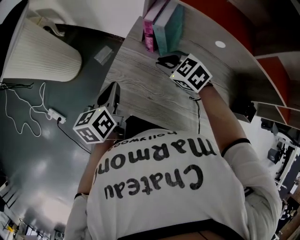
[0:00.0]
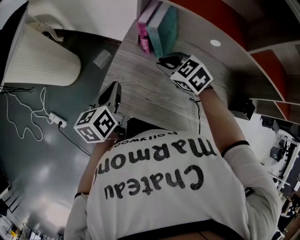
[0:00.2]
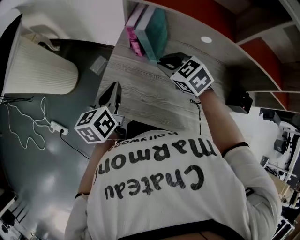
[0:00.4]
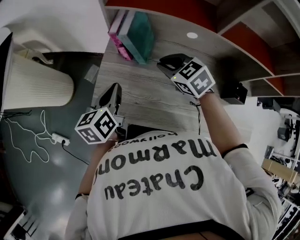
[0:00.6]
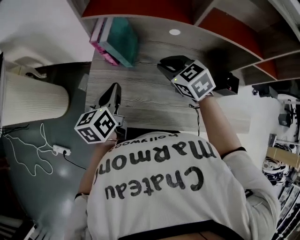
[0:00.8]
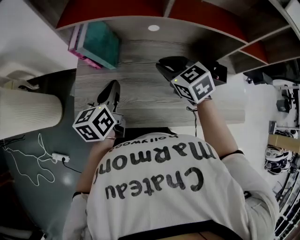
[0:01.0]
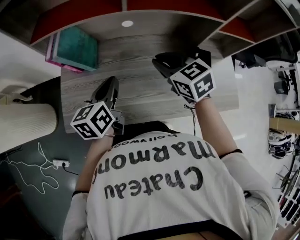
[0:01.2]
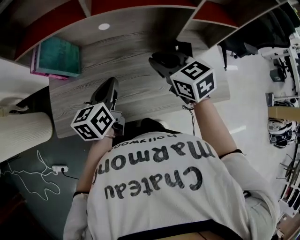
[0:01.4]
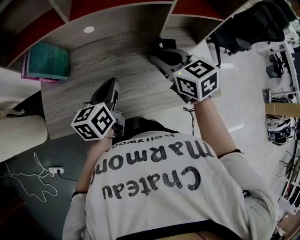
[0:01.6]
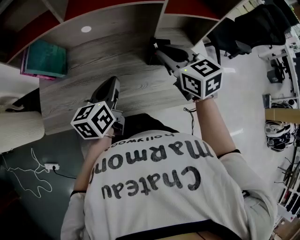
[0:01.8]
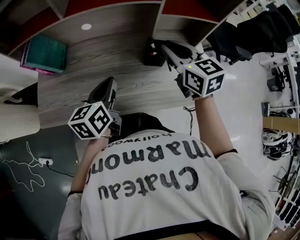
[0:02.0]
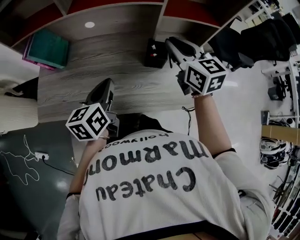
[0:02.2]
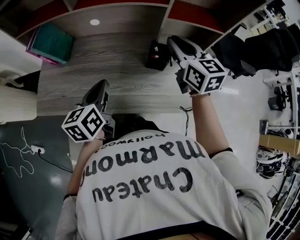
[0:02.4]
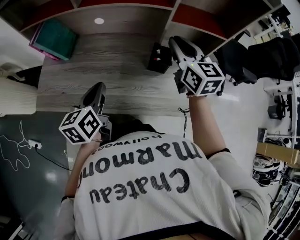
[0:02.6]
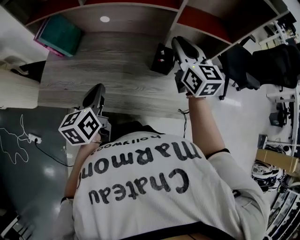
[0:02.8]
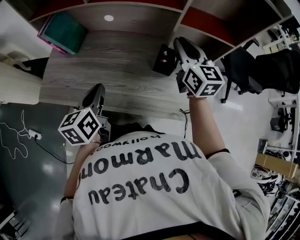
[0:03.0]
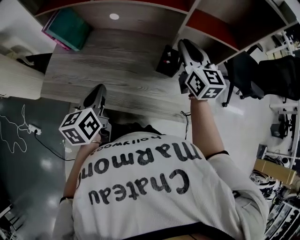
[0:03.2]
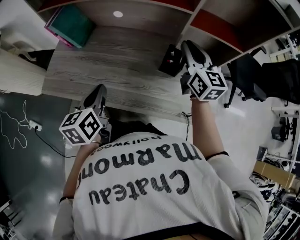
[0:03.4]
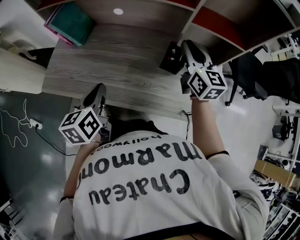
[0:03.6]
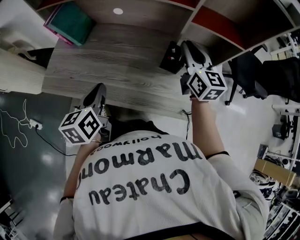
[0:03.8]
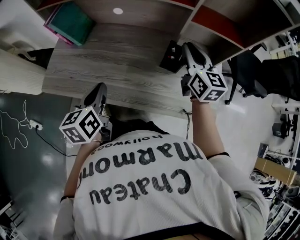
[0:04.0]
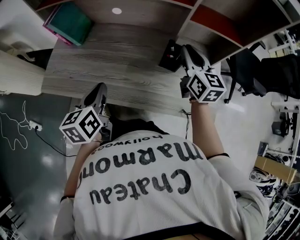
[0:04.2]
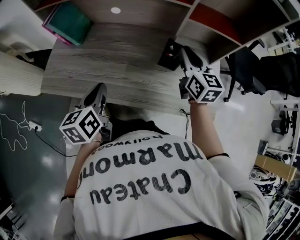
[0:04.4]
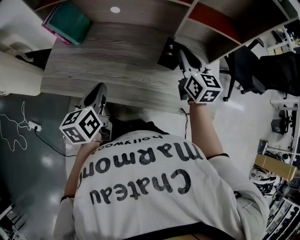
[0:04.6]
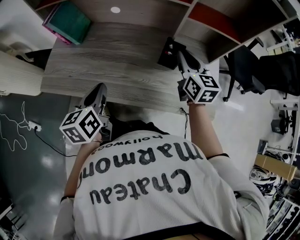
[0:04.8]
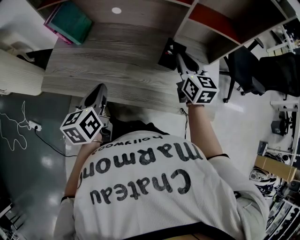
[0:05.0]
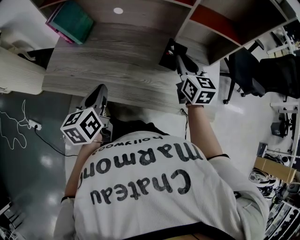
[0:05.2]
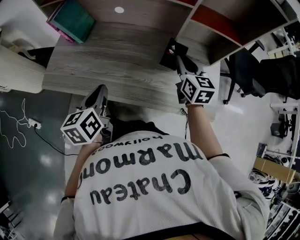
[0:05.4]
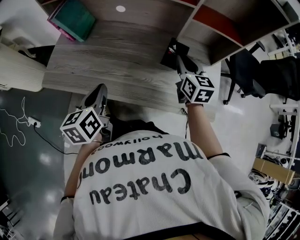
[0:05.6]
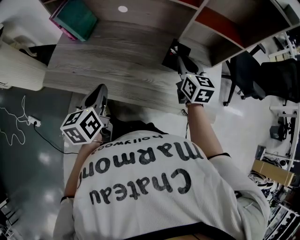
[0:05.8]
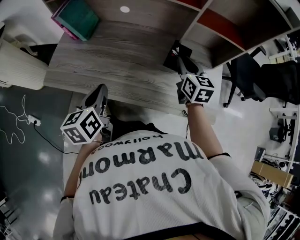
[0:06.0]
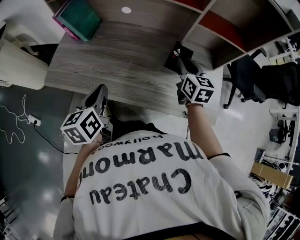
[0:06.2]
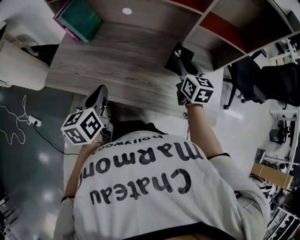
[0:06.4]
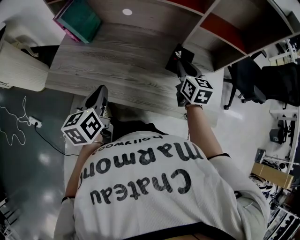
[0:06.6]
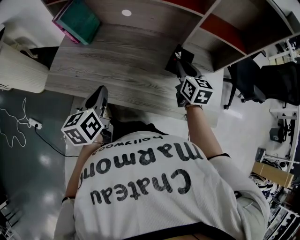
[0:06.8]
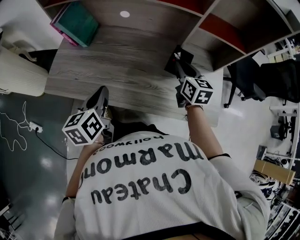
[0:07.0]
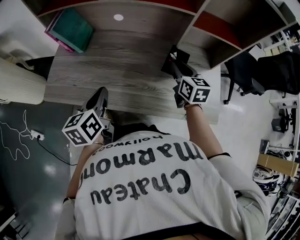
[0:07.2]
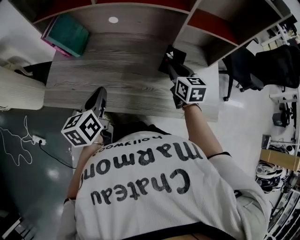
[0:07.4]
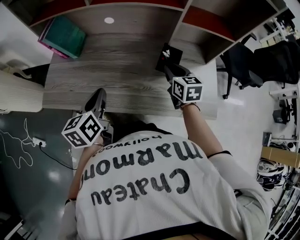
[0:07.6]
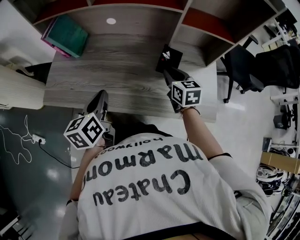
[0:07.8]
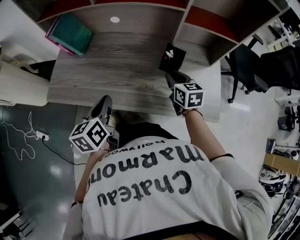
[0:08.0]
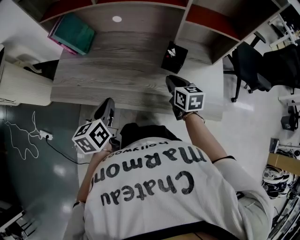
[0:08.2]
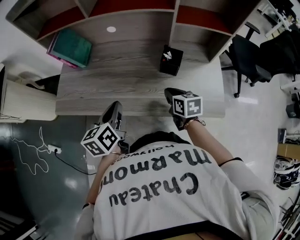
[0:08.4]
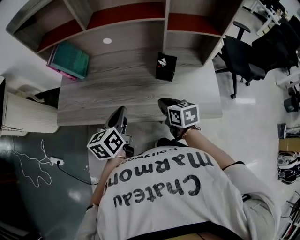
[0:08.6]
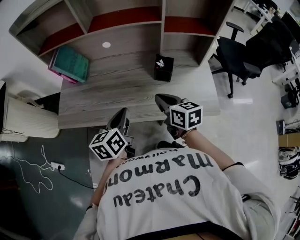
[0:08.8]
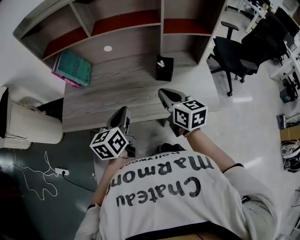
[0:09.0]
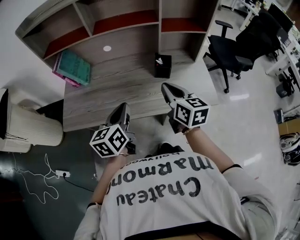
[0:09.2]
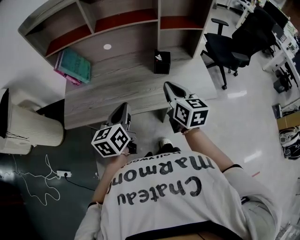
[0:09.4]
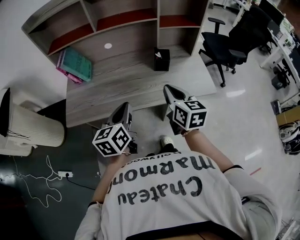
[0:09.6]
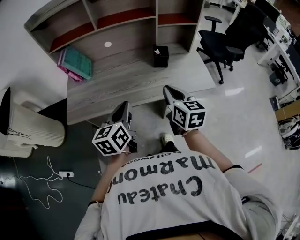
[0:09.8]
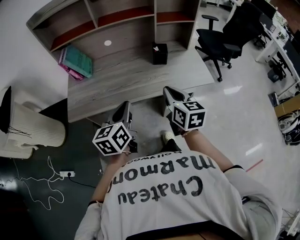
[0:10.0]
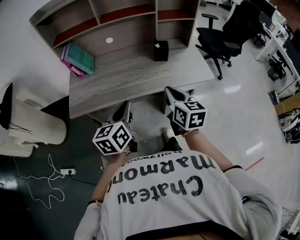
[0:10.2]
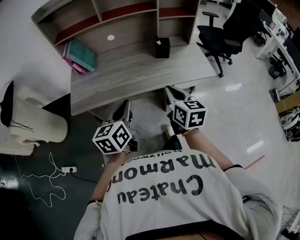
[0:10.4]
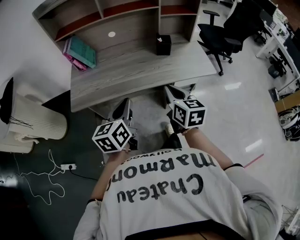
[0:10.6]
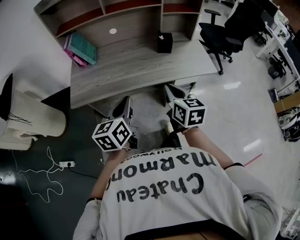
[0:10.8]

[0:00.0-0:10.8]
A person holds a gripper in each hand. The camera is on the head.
0.0 to 1.6 s: The pair of grippers is taken roughly 40 cm. The left gripper turns by about 40 degrees, while the right gripper changes its angle by about 60 degrees.
1.6 to 3.0 s: The left gripper moves backward, about 5 cm, and changes its angle by about 20 degrees. Meanwhile the right gripper heads to the right and forward, covering roughly 10 cm, and turns by approximately 20 degrees.
3.0 to 4.6 s: The right gripper travels downward by about 5 cm.
4.6 to 6.2 s: The right gripper changes place by some 5 cm.
6.2 to 7.8 s: The right gripper shifts by roughly 5 cm.
7.8 to 9.2 s: The right gripper goes some 20 cm backward, upward and to the left, and rotates approximately 20 degrees; the left gripper is displaced backward by some 5 cm.
9.2 to 10.8 s: The left gripper shifts roughly 15 cm backward and to the left; the right gripper moves backward, about 20 cm.

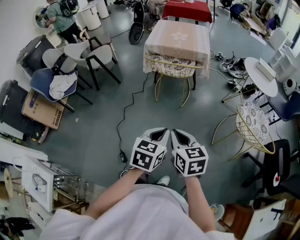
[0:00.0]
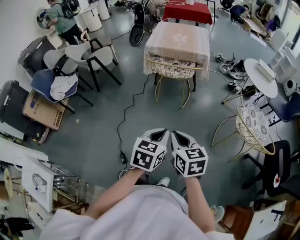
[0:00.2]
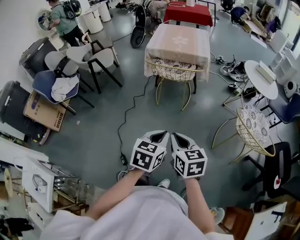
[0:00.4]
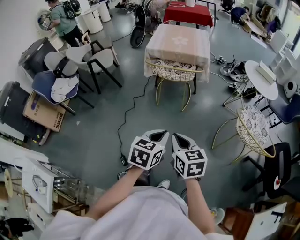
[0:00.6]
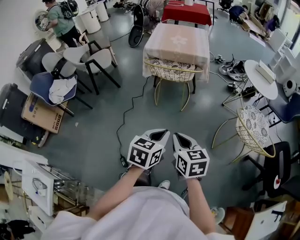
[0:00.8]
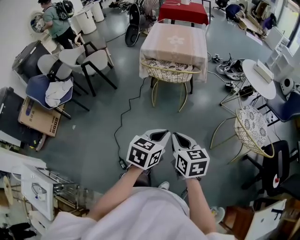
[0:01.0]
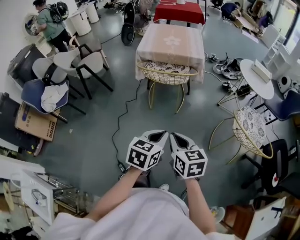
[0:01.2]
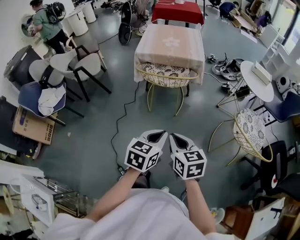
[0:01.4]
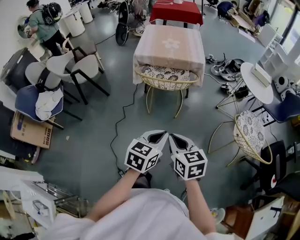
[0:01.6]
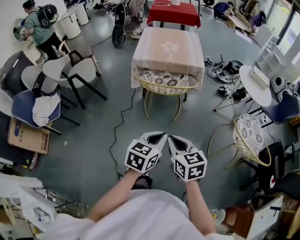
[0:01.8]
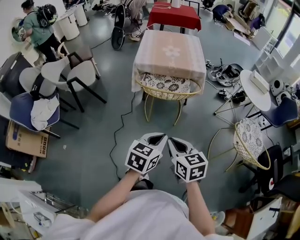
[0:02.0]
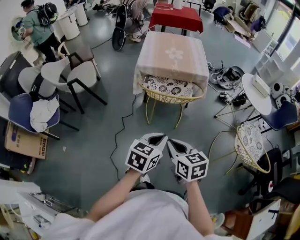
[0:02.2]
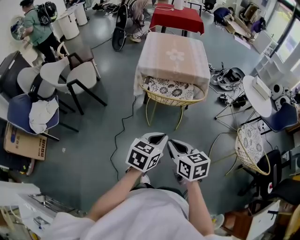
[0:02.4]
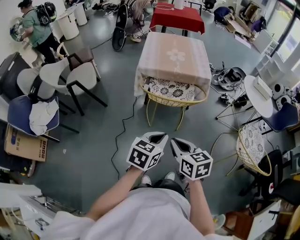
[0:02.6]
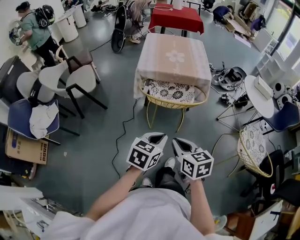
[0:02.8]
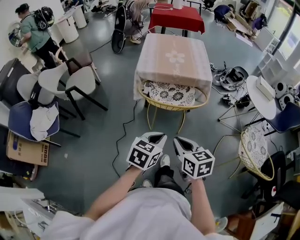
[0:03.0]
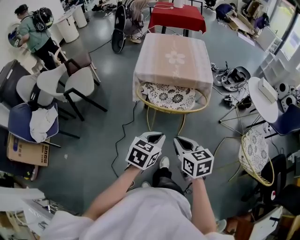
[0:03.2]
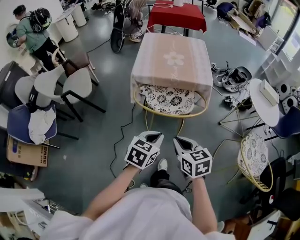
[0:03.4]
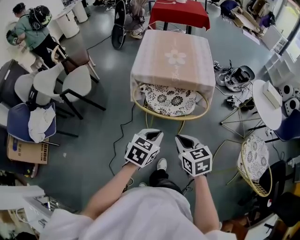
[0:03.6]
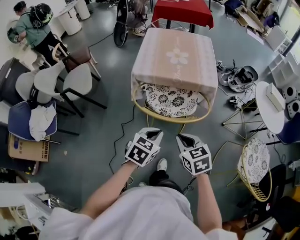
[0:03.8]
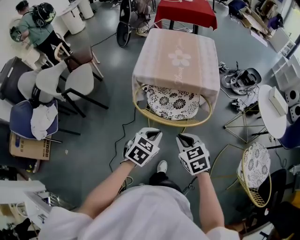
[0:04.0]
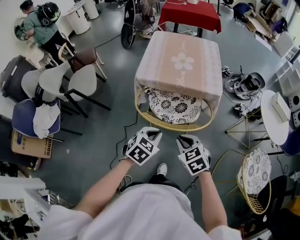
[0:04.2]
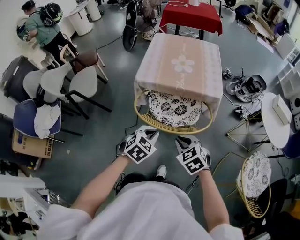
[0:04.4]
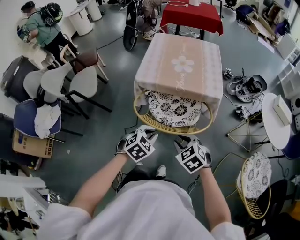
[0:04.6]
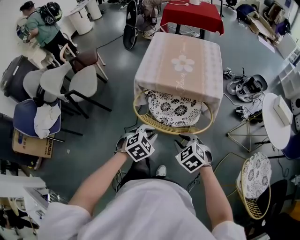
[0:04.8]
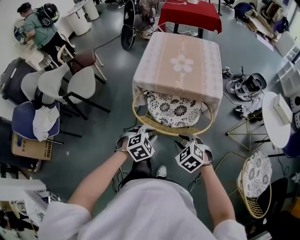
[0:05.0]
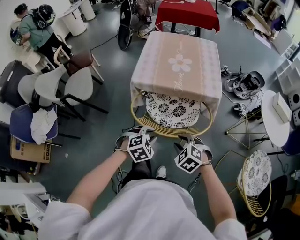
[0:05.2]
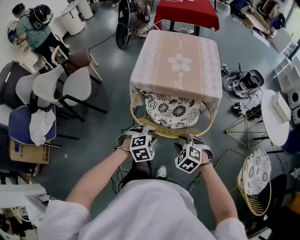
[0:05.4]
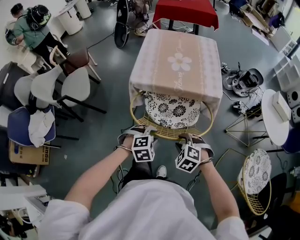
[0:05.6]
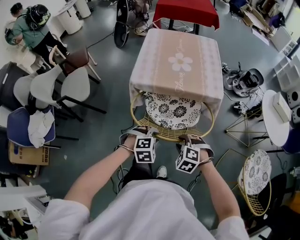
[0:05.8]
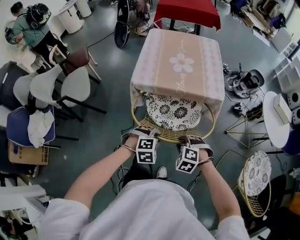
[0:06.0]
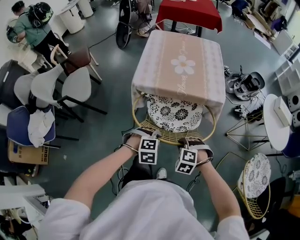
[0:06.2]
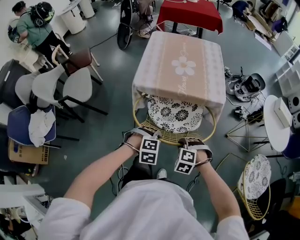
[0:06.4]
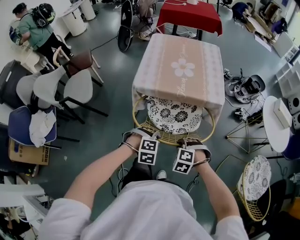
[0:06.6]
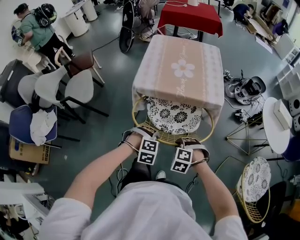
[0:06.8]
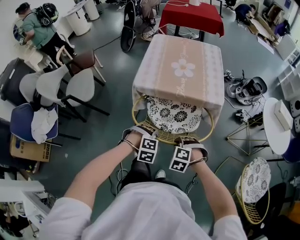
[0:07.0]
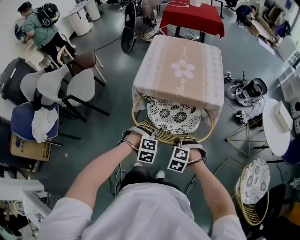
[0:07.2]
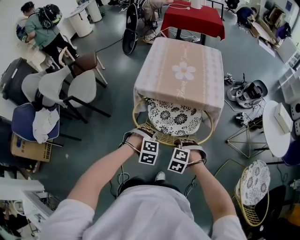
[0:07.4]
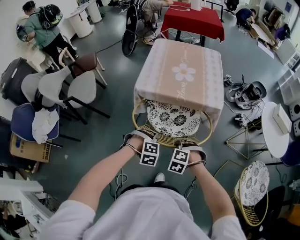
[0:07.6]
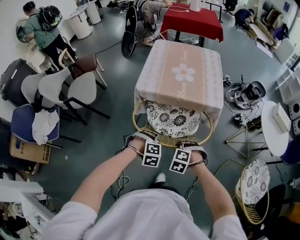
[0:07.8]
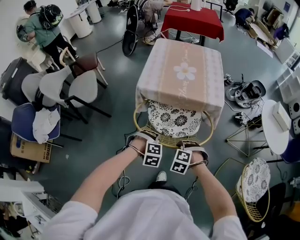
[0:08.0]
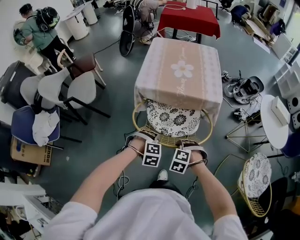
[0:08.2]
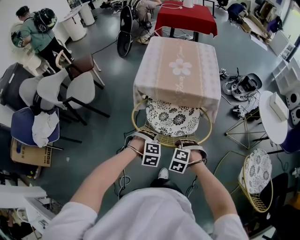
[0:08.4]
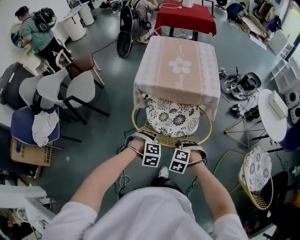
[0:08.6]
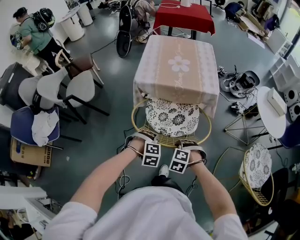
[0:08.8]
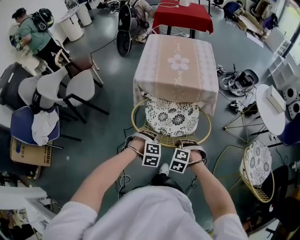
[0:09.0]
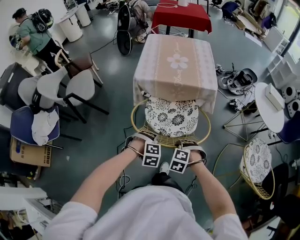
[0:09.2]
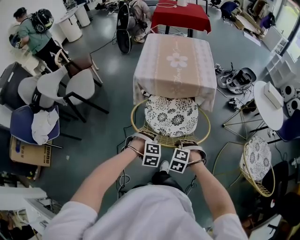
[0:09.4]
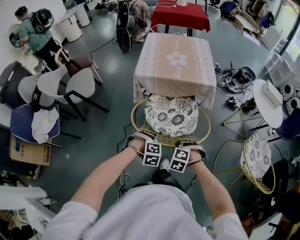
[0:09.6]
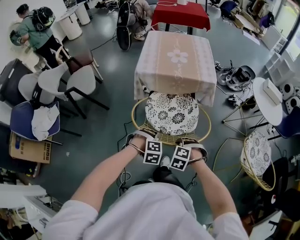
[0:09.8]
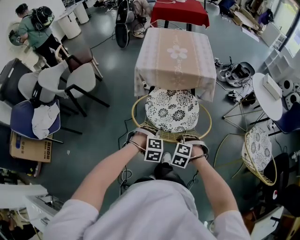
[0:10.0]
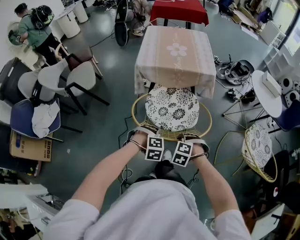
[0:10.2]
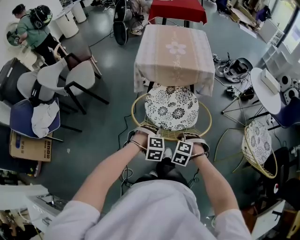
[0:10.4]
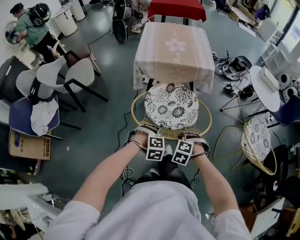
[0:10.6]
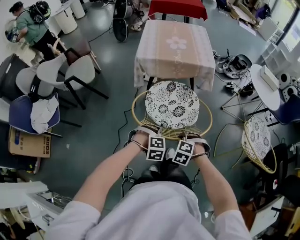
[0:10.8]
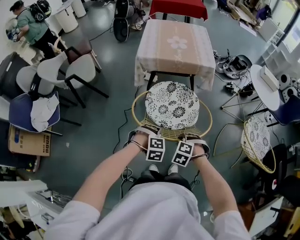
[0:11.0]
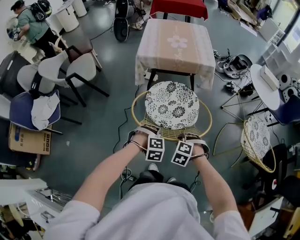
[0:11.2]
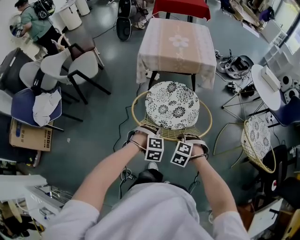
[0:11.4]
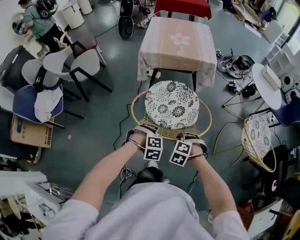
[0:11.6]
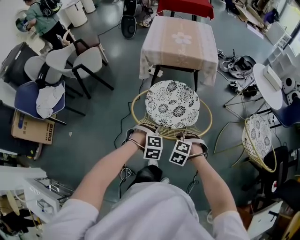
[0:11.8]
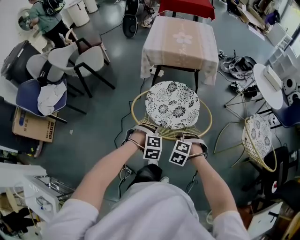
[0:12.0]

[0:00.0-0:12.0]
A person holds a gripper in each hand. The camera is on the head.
0.0 to 1.6 s: Both grippers travel together forward, about 15 cm.
1.6 to 3.0 s: The two grippers go some 20 cm forward and to the left.
3.0 to 4.4 s: The grippers both shift forward and downward by some 20 cm. The left gripper changes its angle by some 30 degrees. The right gripper swivels approximately 40 degrees.
4.4 to 6.0 s: The two grippers go approximately 10 cm downward. The left gripper rotates about 40 degrees, and opens, while the right gripper turns by roughly 40 degrees, and opens its fingers.
6.0 to 7.6 s: The grippers make only small movements.
7.6 to 9.0 s: The two grippers go some 10 cm backward.
9.0 to 10.4 s: The two grippers go about 10 cm backward.
10.4 to 12.0 s: The grippers both shift backward by some 10 cm.

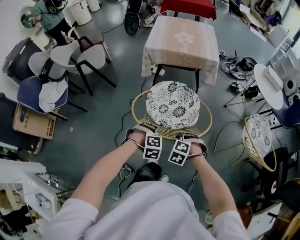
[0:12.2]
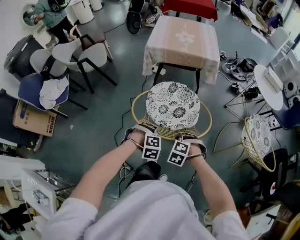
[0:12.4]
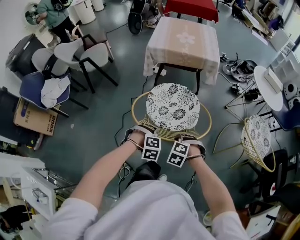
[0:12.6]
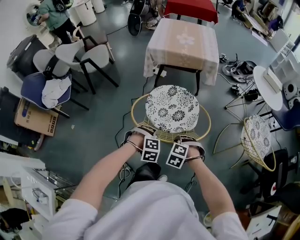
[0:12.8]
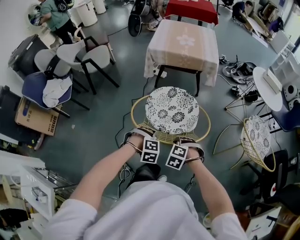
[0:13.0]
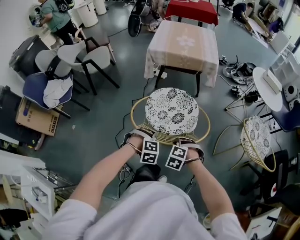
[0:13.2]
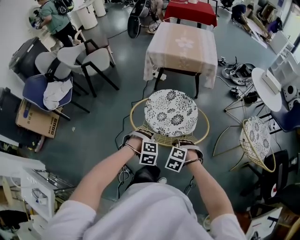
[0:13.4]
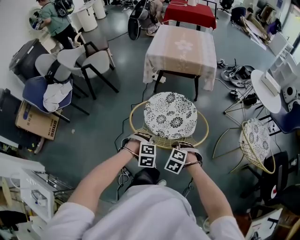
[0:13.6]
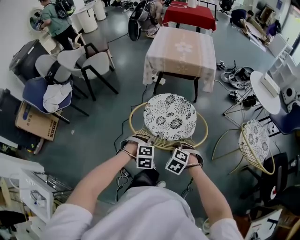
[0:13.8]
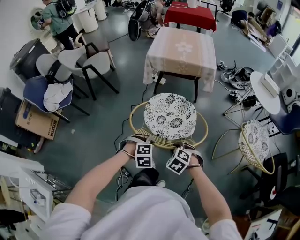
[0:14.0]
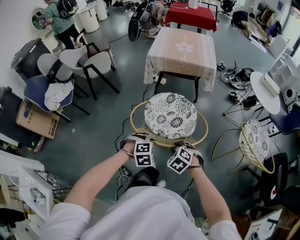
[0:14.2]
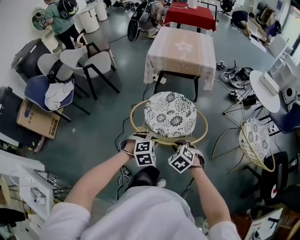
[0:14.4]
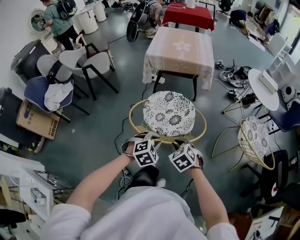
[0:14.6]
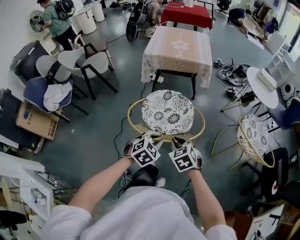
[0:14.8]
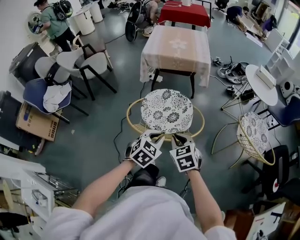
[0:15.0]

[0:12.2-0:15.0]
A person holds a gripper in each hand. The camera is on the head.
12.2 to 13.6 s: The grippers both shift backward by roughly 5 cm.
13.6 to 15.0 s: The right gripper travels upward by roughly 10 cm, and twists roughly 40 degrees clockwise, seen from behind, while the left gripper shifts about 15 cm upward and to the right, and rolls counterclockwise, seen from behind, by approximately 40 degrees.
